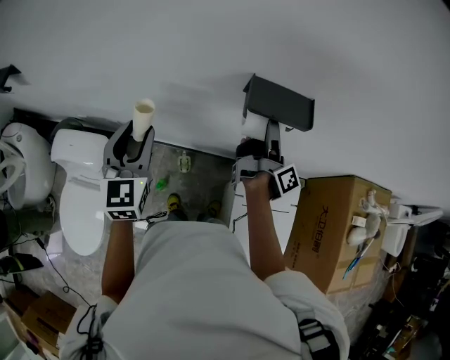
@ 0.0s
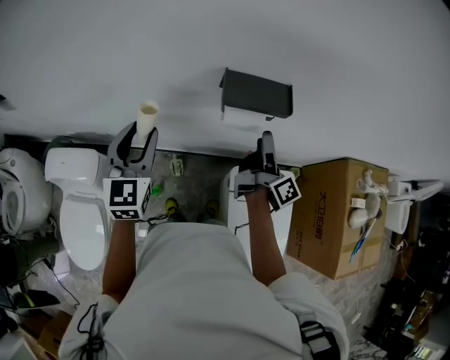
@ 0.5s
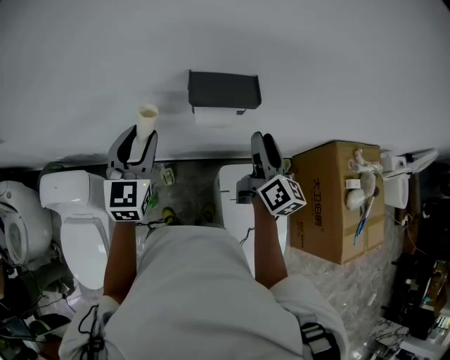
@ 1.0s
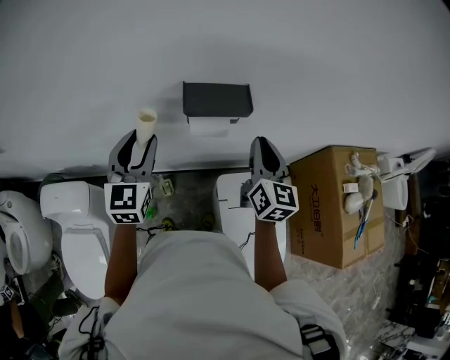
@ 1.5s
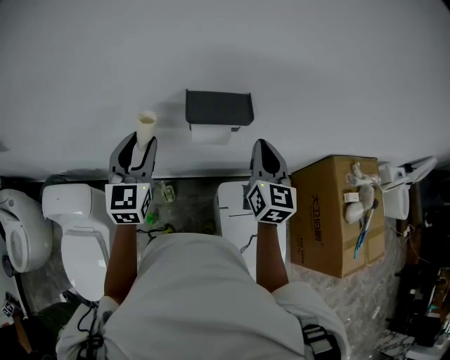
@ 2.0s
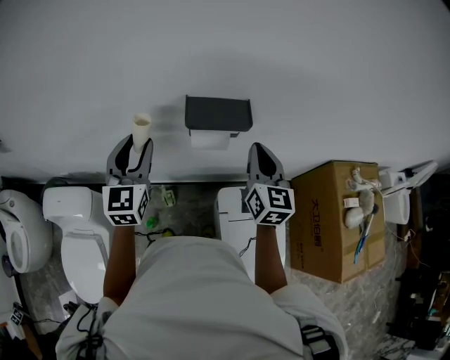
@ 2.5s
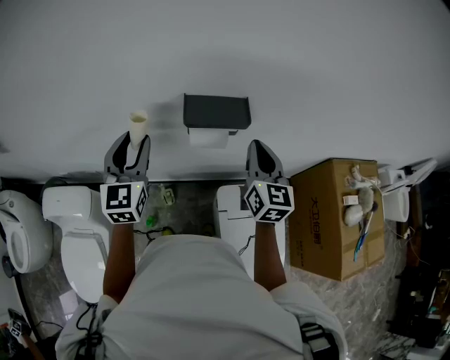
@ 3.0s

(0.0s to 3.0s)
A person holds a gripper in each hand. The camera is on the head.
0.0s - 1.5s: The right gripper moves to the right, backward and upward, roughly 15 cm, rolls counterclockwise, seen from behind, by roughly 80 degrees, and closes. Meanwhile the left gripper travels to the right by roughly 10 cm.
1.5s - 3.0s: The grippers stay close to where they were, moving slightly.

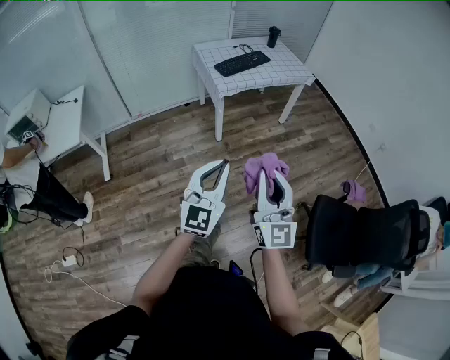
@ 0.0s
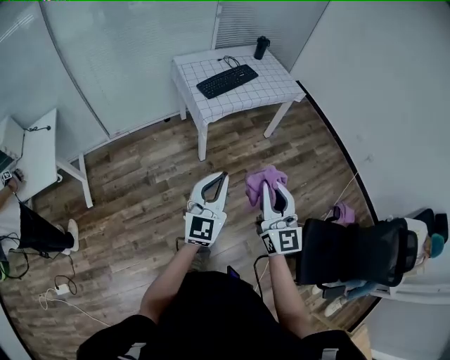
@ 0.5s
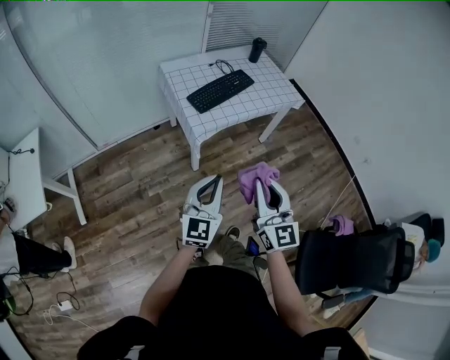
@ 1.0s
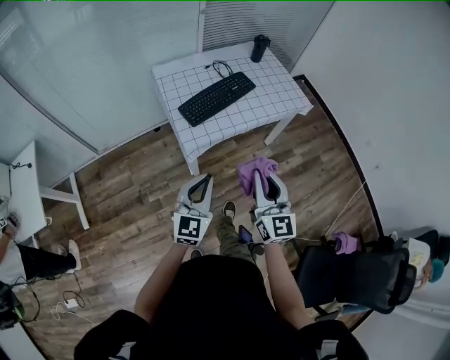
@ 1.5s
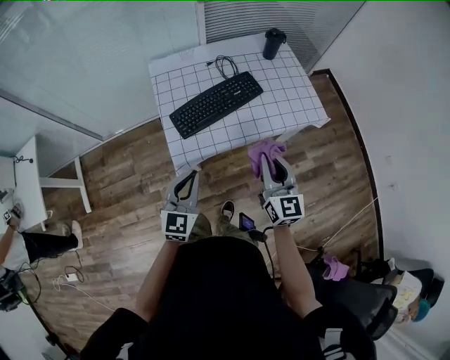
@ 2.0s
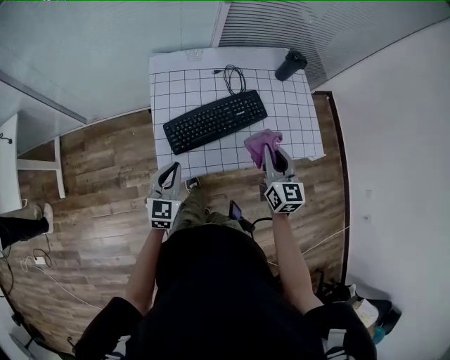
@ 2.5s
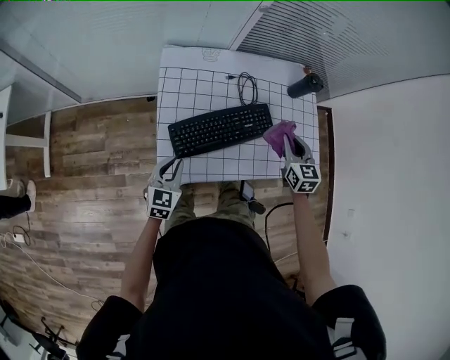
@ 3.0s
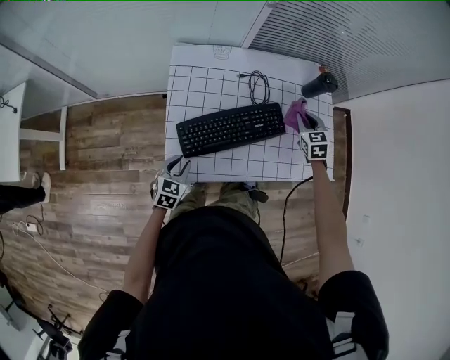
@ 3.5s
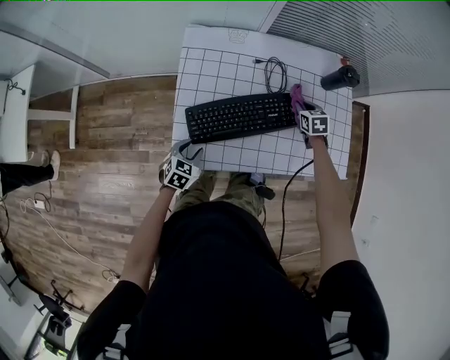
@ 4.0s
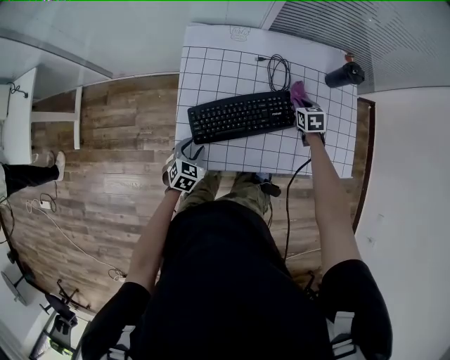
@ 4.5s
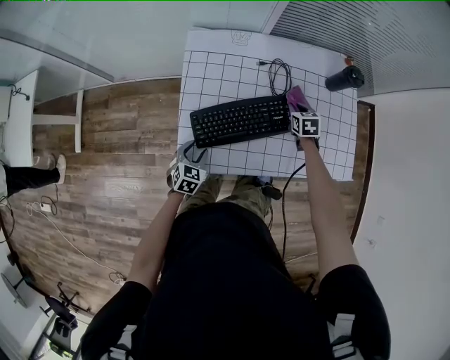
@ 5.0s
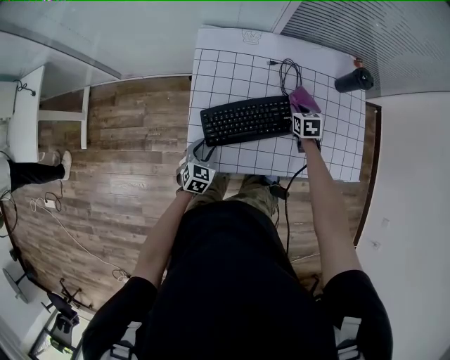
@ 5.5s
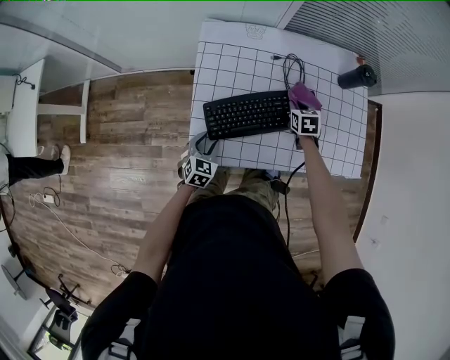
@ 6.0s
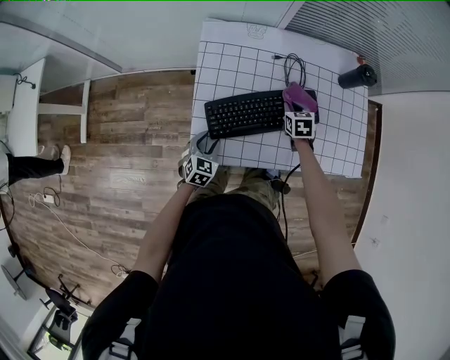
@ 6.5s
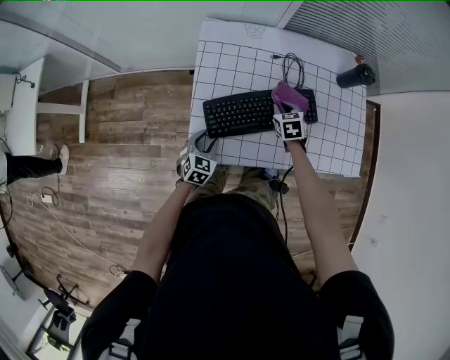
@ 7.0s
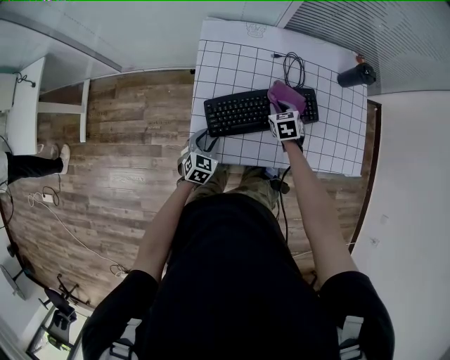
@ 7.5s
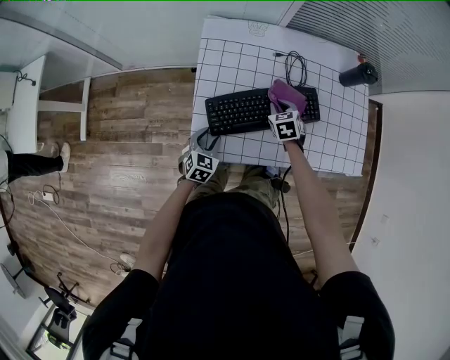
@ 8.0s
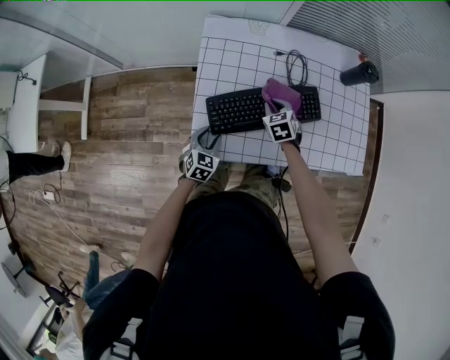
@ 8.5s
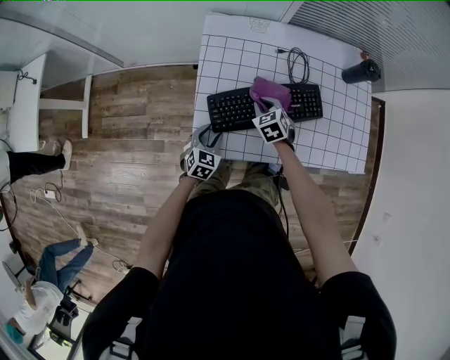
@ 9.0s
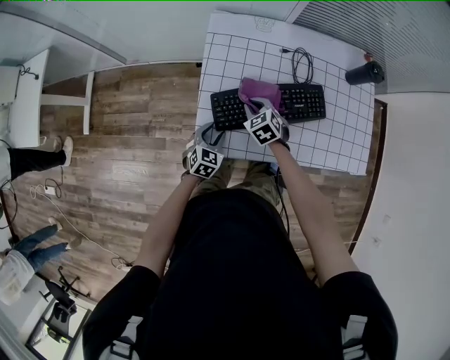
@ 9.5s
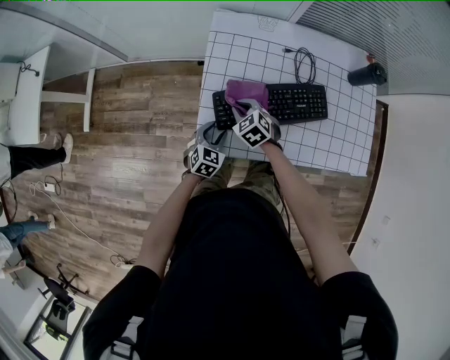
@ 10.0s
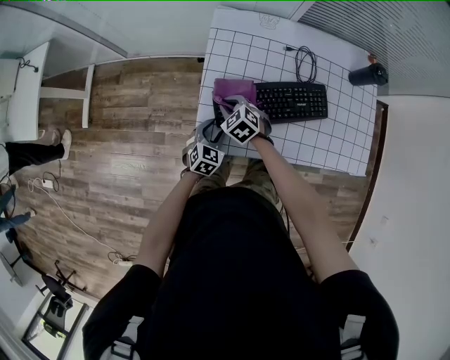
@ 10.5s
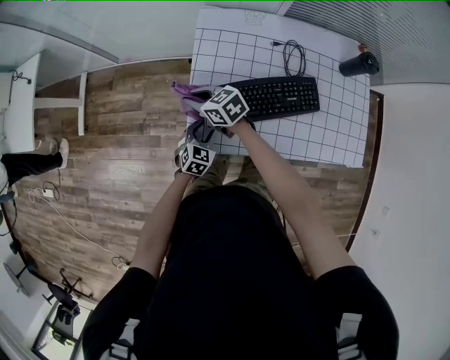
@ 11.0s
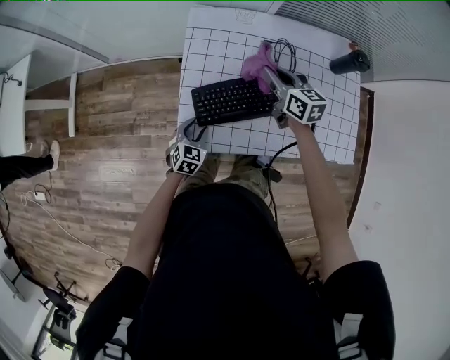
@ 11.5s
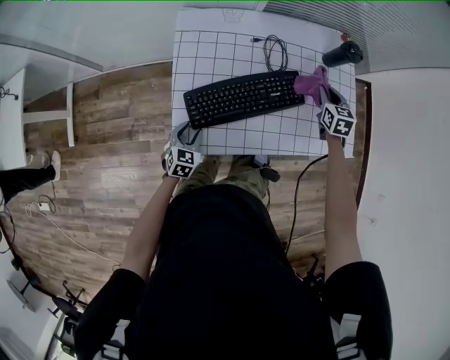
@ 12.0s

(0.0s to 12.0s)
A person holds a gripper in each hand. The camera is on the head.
0.0s - 2.0s: The pair of grippers is taken forward, some 70 cm. The left gripper swivels approximately 20 degrees. Meanwhile the right gripper turns by approximately 30 degrees.
2.0s - 4.0s: The right gripper goes some 50 cm forward and downward, and points its fingers approximately 50 degrees further downward. The left gripper travels downward and forward by roughly 30 cm, points its fingers approximately 40 degrees further downward, and opens its fingers.
4.0s - 6.0s: The right gripper travels to the left by roughly 10 cm.
6.0s - 8.0s: The right gripper shifts about 10 cm to the left.
8.0s - 10.0s: The right gripper is displaced to the left by approximately 15 cm, and changes its angle by roughly 30 degrees.
10.0s - 12.0s: The right gripper changes place by about 40 cm, and swivels some 50 degrees.

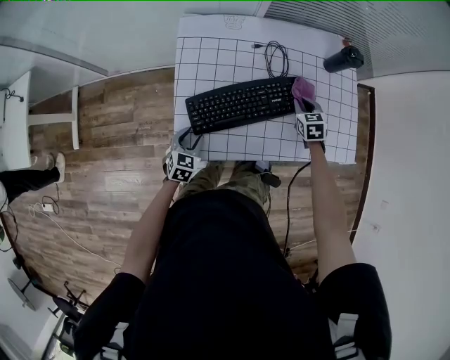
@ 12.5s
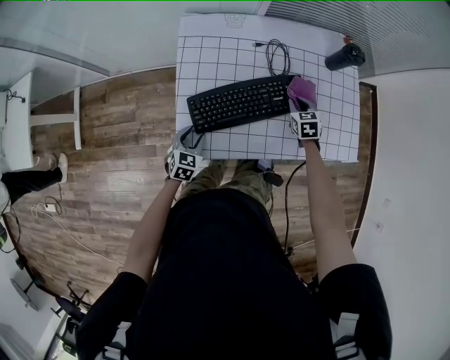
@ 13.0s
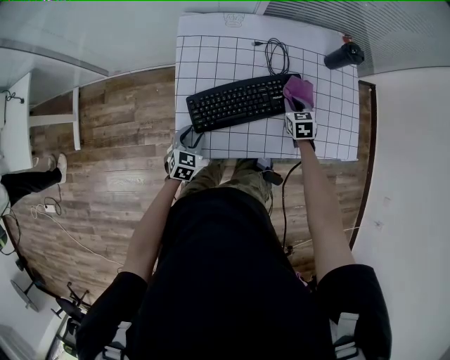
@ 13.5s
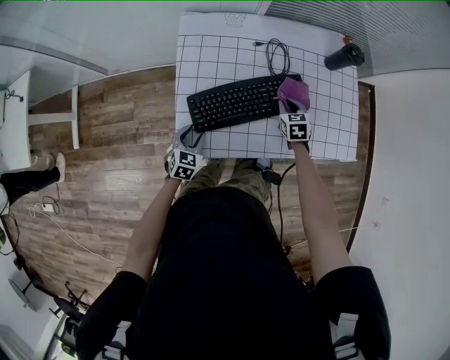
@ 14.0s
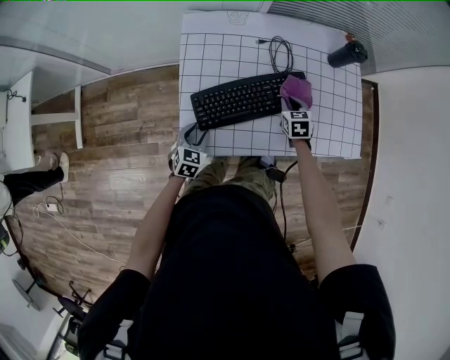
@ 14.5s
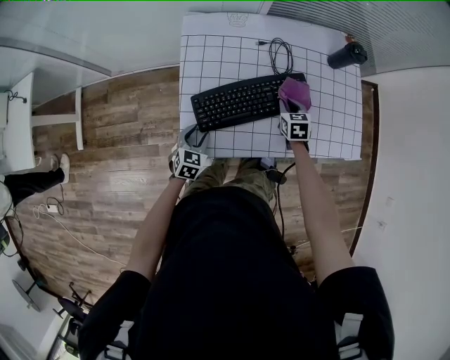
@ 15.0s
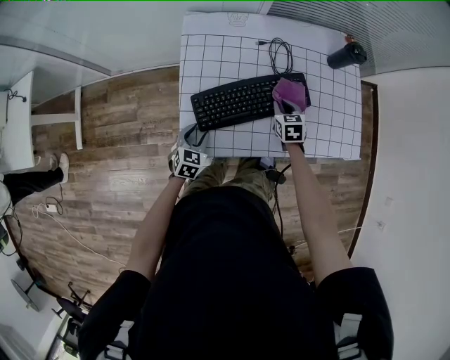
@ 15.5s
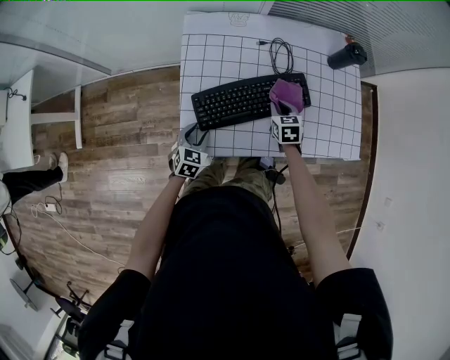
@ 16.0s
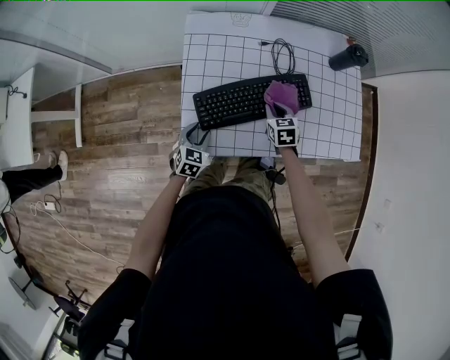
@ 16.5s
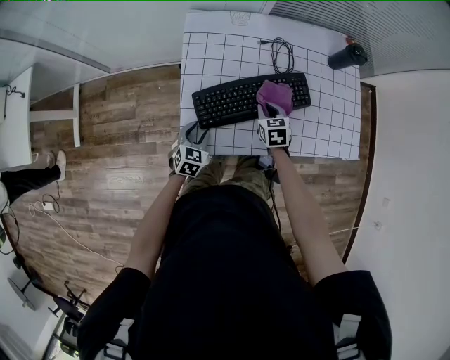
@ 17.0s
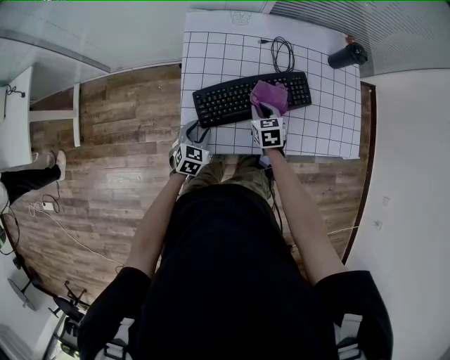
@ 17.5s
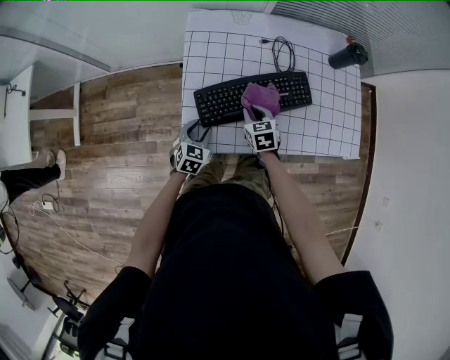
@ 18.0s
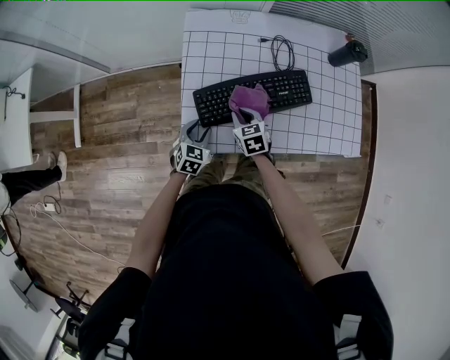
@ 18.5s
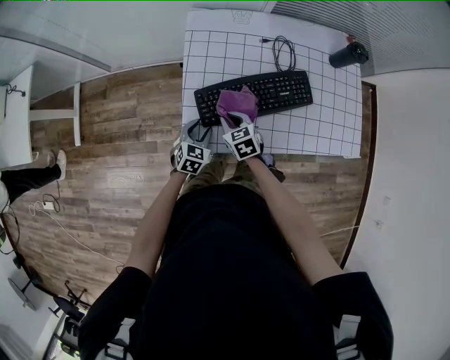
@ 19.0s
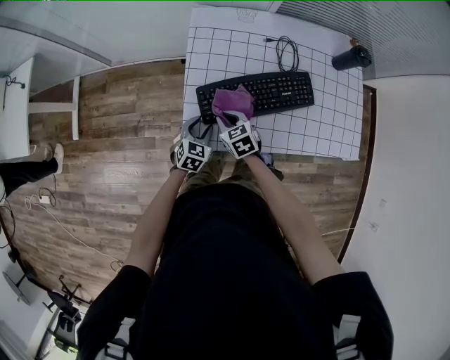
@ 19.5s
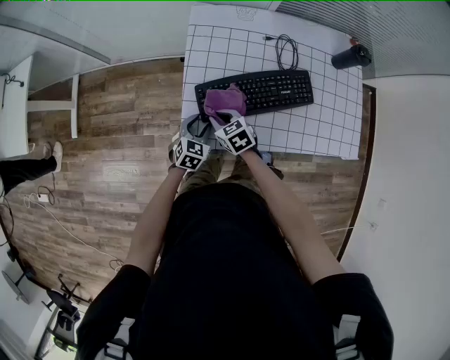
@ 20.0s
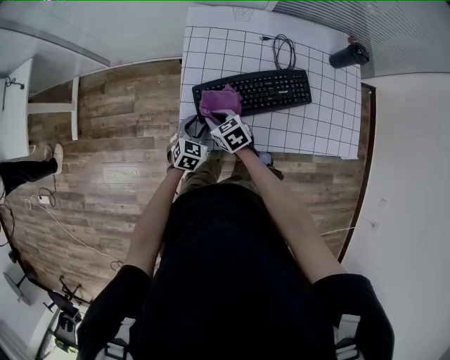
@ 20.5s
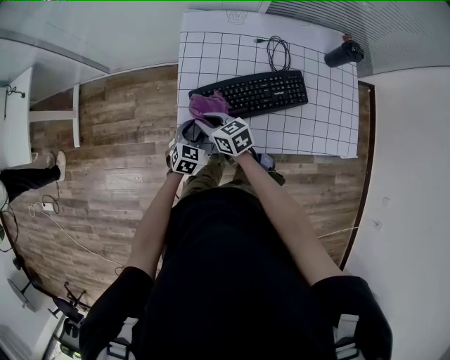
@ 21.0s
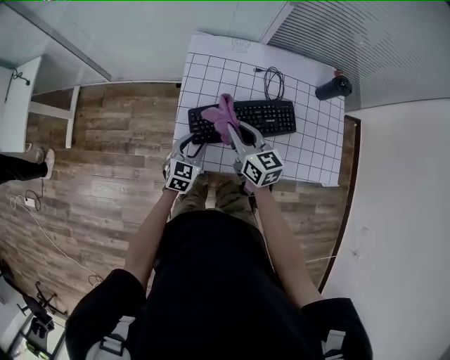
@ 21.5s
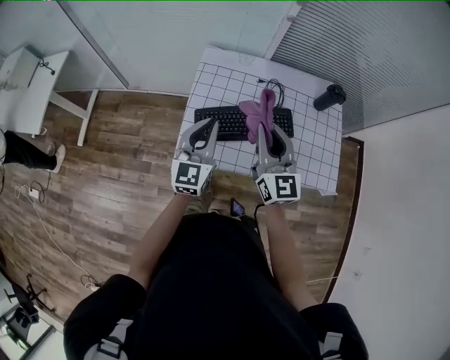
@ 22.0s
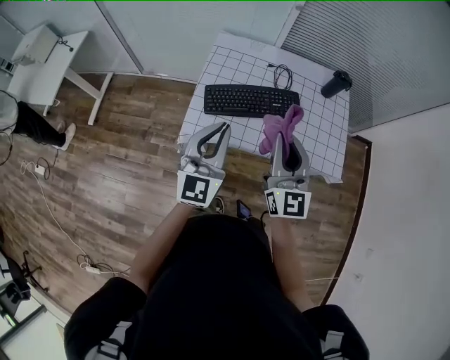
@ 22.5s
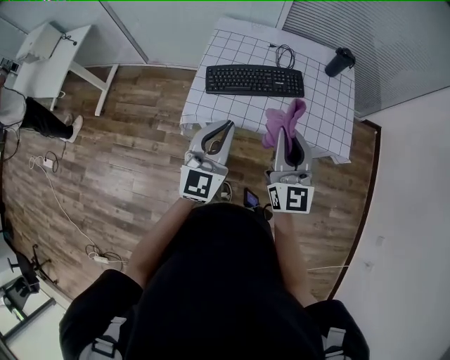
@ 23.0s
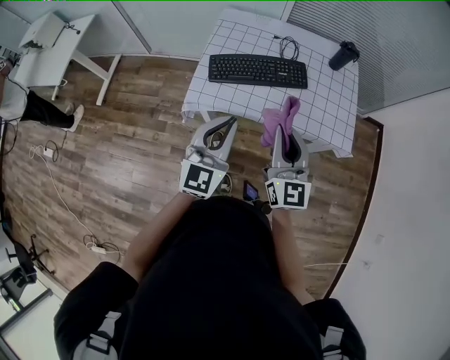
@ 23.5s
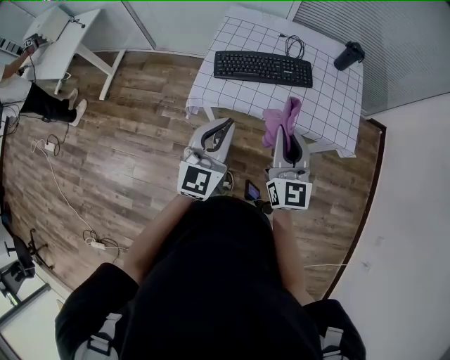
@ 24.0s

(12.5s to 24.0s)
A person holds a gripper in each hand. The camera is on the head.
12.5s - 14.5s: The right gripper travels to the left by about 5 cm.
14.5s - 16.5s: The right gripper goes about 5 cm to the left.
16.5s - 18.5s: The right gripper goes some 15 cm to the left and backward.
18.5s - 20.0s: The right gripper heads to the left, covering roughly 10 cm.
20.0s - 22.0s: The left gripper goes roughly 30 cm upward, angles its fingers upward, by approximately 40 degrees, and closes up. Meanwhile the right gripper shifts about 35 cm upward and to the right, and tilts its fingers about 50 degrees upward.
22.0s - 24.0s: The grippers both shift backward by roughly 25 cm.
